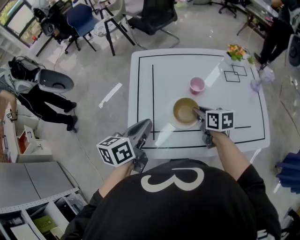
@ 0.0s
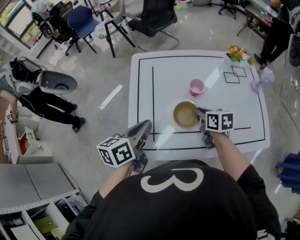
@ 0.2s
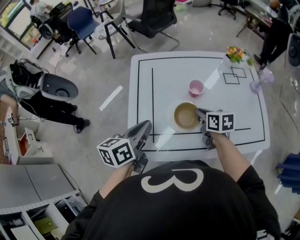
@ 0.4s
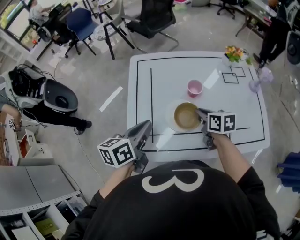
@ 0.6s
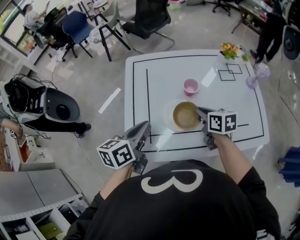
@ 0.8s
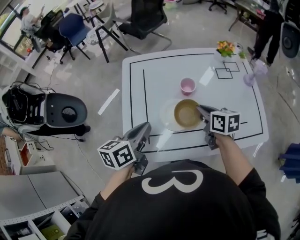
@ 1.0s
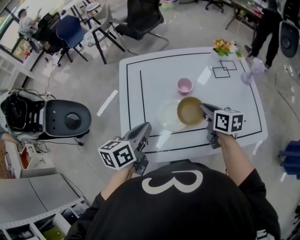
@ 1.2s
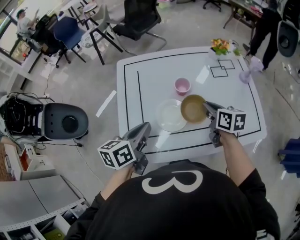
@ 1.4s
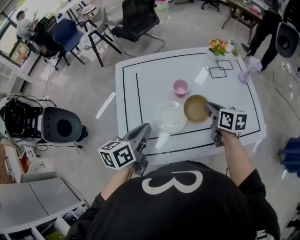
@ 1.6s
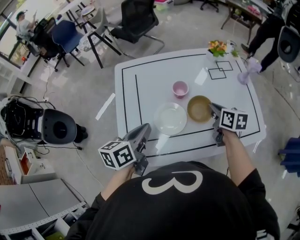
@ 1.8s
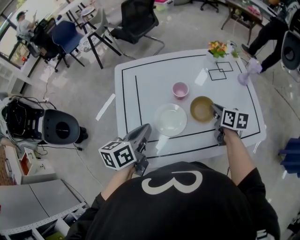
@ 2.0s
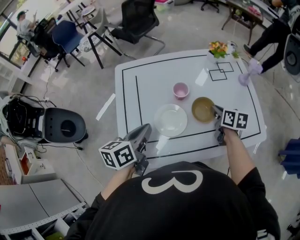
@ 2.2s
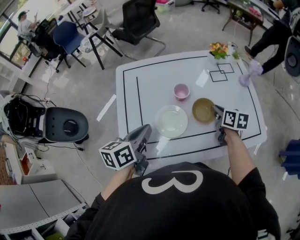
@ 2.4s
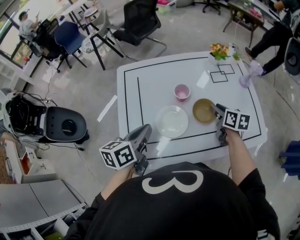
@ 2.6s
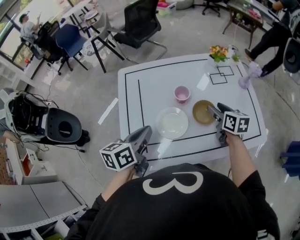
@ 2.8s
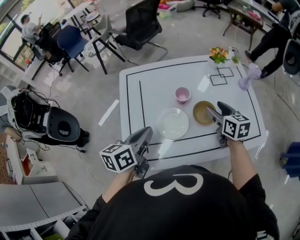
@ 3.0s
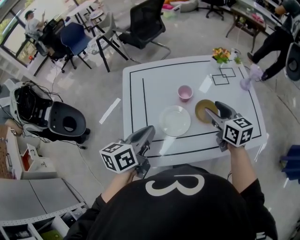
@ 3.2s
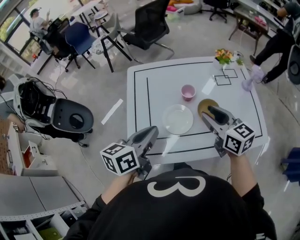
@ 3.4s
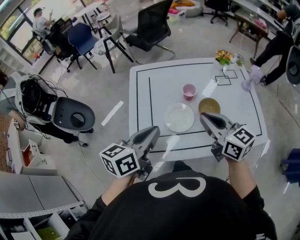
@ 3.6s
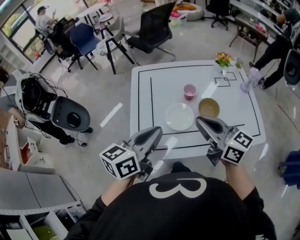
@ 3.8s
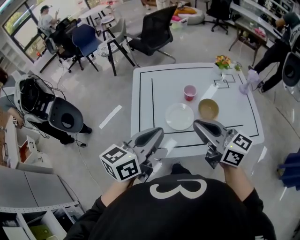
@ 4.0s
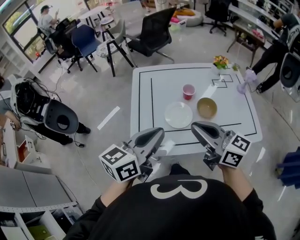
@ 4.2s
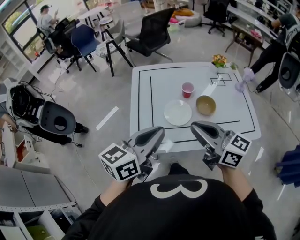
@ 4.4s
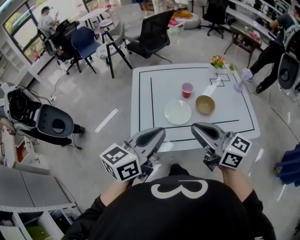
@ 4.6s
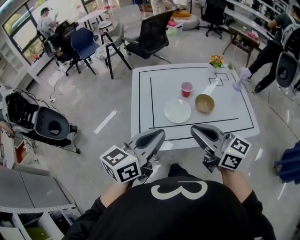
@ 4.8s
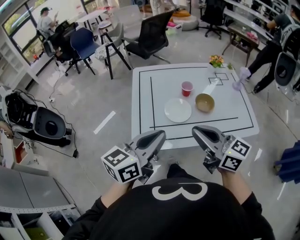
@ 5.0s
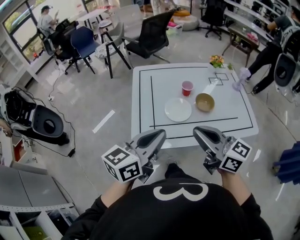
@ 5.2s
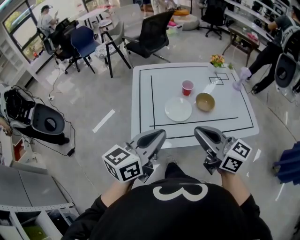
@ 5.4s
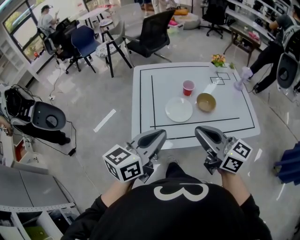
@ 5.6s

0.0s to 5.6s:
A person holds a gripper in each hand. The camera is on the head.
0.0s to 1.4s: The right gripper heads to the right, covering roughly 10 cm.
1.4s to 2.8s: The right gripper heads to the right, covering some 5 cm, and opens its fingers.
2.8s to 4.2s: The right gripper travels backward, upward and to the left by roughly 35 cm, tilts its fingers about 30 degrees upward, and closes its fingers. Meanwhile the left gripper moves backward and upward, some 20 cm, and changes its angle by some 20 degrees.
4.2s to 5.6s: The right gripper is displaced backward by approximately 5 cm.

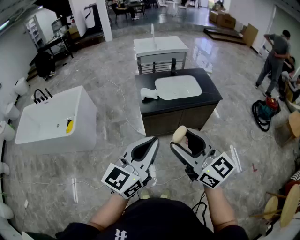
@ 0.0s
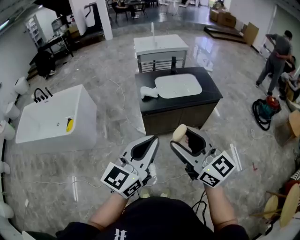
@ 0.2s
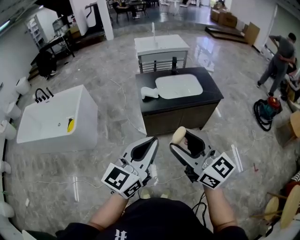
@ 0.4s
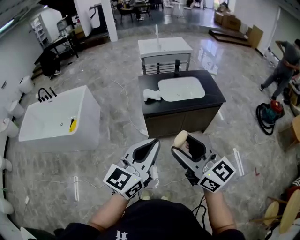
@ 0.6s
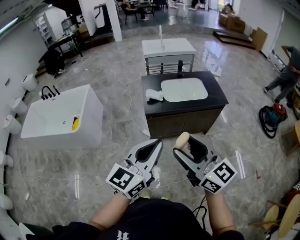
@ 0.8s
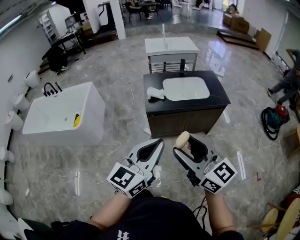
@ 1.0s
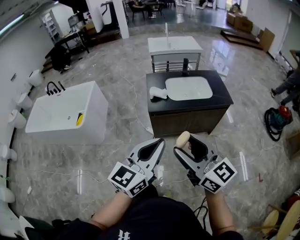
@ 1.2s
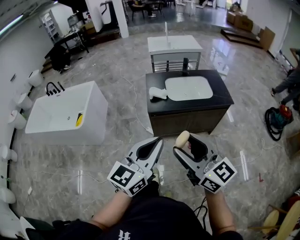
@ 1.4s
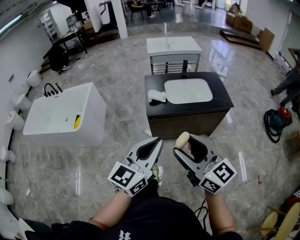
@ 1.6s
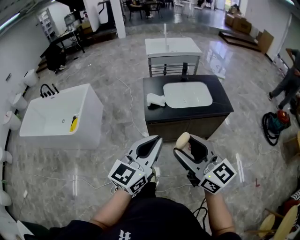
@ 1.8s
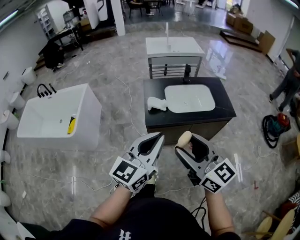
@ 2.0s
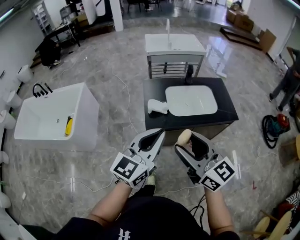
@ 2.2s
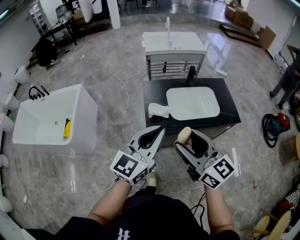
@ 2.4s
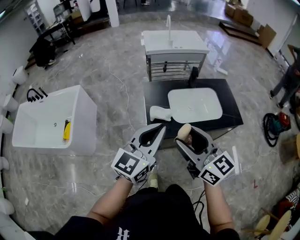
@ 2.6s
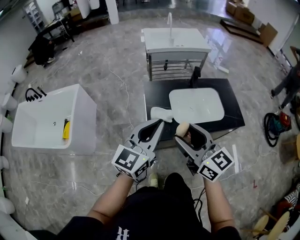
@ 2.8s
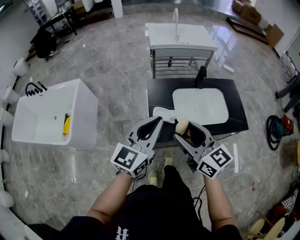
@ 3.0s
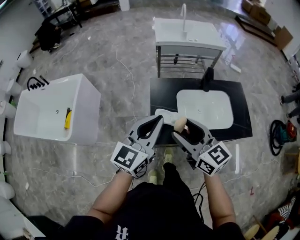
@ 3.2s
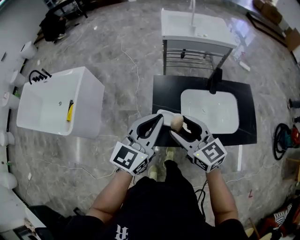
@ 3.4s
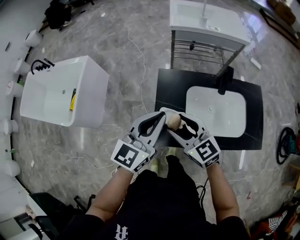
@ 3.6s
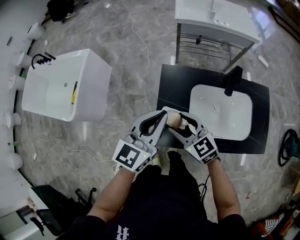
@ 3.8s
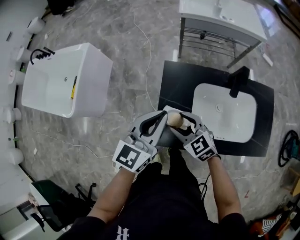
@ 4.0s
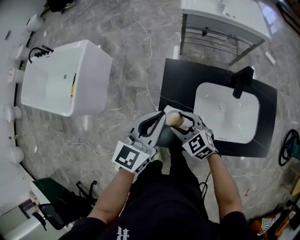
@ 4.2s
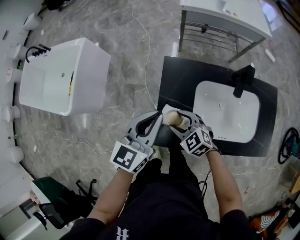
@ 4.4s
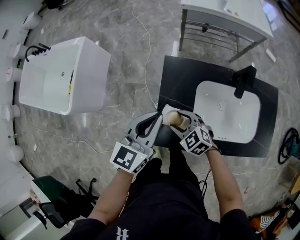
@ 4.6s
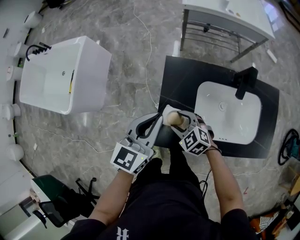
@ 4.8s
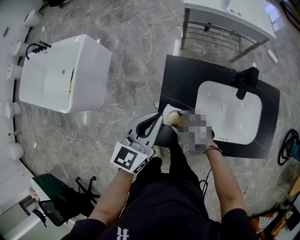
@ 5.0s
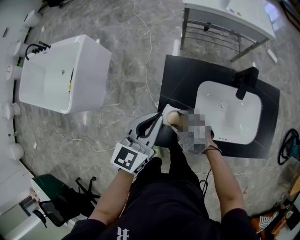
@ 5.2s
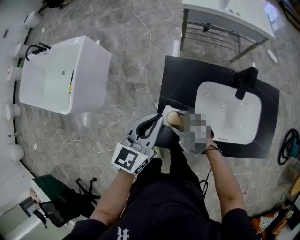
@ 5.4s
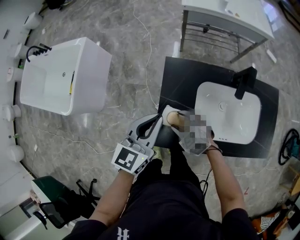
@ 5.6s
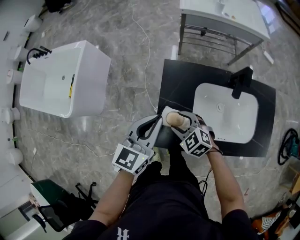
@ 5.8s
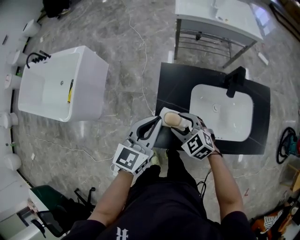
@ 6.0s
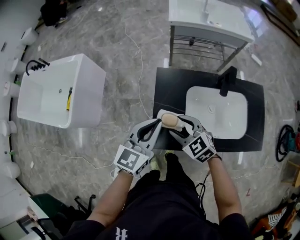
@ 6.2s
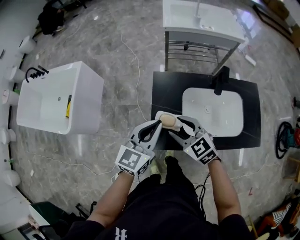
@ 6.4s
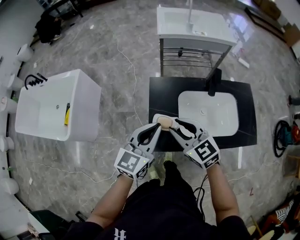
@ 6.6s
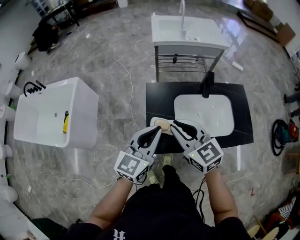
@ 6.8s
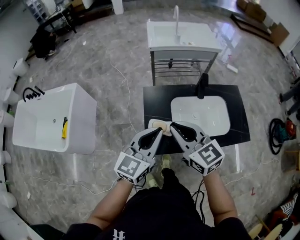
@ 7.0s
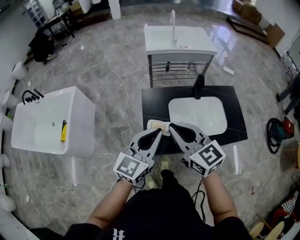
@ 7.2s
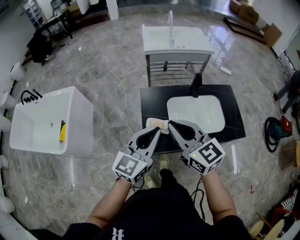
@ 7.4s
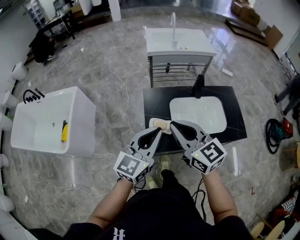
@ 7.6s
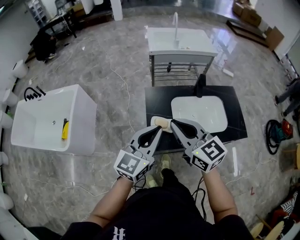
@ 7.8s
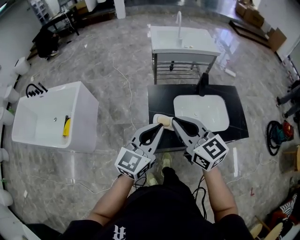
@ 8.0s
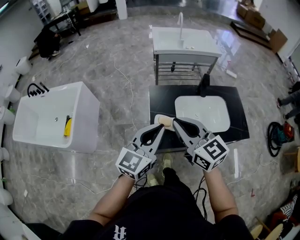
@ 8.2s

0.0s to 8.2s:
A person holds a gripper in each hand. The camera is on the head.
0.0s to 1.6s: The left gripper moves forward, about 5 cm. Meanwhile the right gripper moves approximately 5 cm.
1.6s to 3.2s: The pair of grippers is taken forward, approximately 40 cm.
3.2s to 5.0s: The left gripper travels downward and forward by roughly 20 cm, and changes its angle by about 20 degrees. The right gripper travels downward by some 30 cm, and tips its fingers downward by roughly 40 degrees.
5.0s to 6.6s: The left gripper moves backward and upward, roughly 10 cm; the right gripper is displaced upward by some 25 cm, rotates about 30 degrees, and closes.
6.6s to 8.2s: Both grippers move upward and backward, roughly 15 cm. The right gripper closes its fingers.

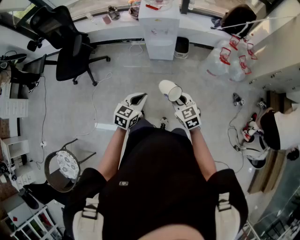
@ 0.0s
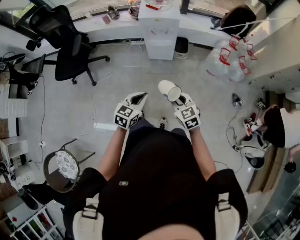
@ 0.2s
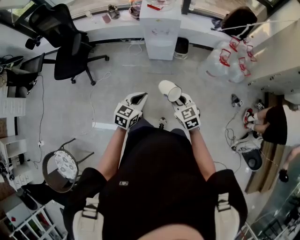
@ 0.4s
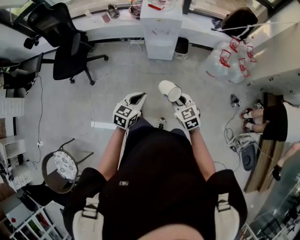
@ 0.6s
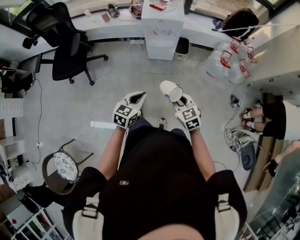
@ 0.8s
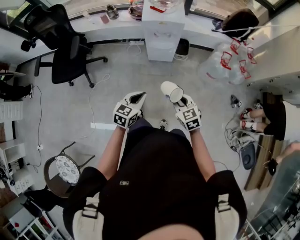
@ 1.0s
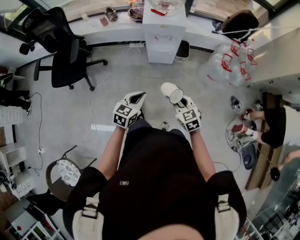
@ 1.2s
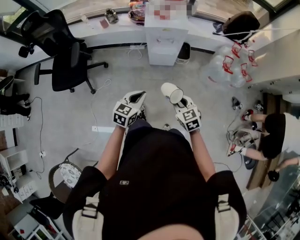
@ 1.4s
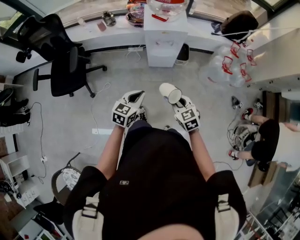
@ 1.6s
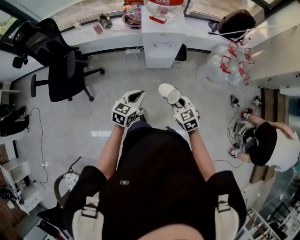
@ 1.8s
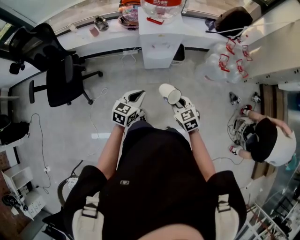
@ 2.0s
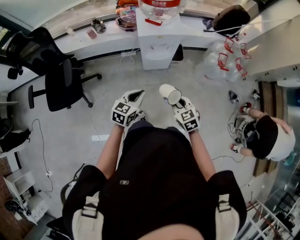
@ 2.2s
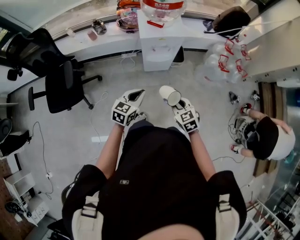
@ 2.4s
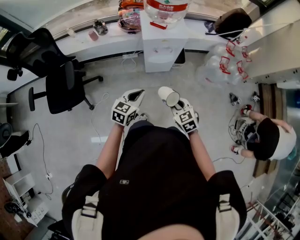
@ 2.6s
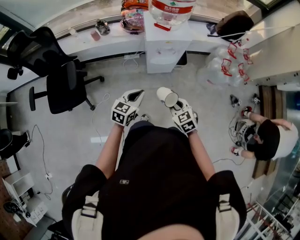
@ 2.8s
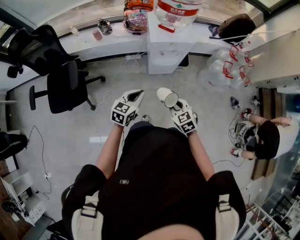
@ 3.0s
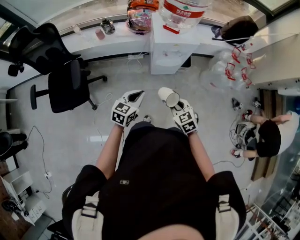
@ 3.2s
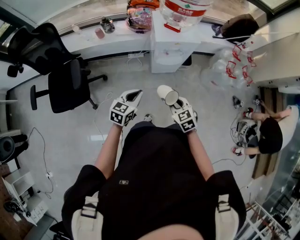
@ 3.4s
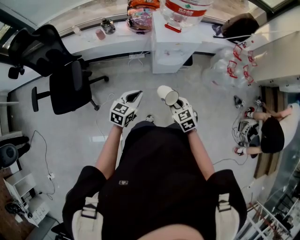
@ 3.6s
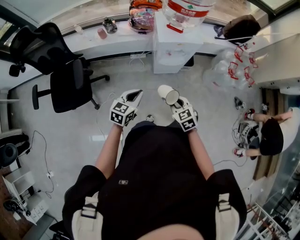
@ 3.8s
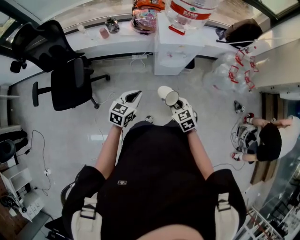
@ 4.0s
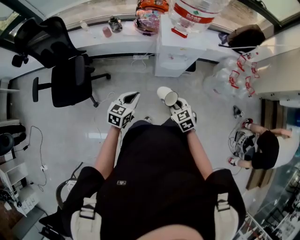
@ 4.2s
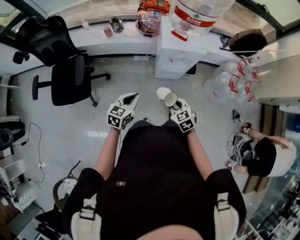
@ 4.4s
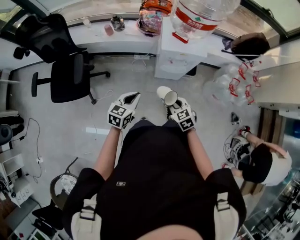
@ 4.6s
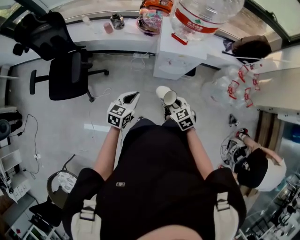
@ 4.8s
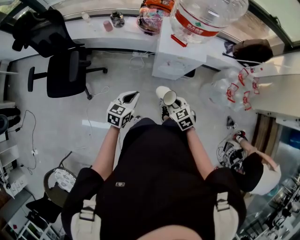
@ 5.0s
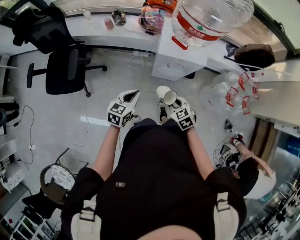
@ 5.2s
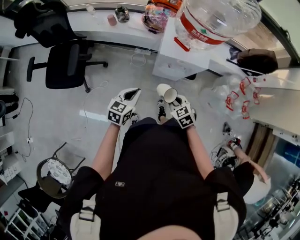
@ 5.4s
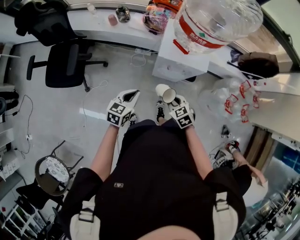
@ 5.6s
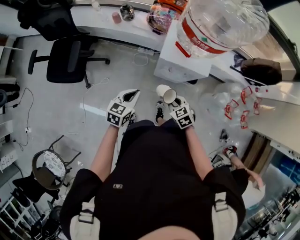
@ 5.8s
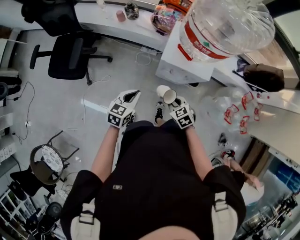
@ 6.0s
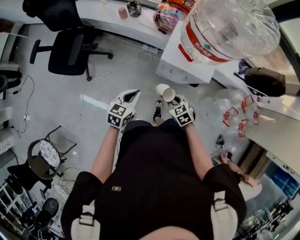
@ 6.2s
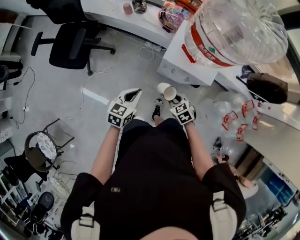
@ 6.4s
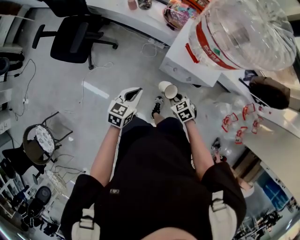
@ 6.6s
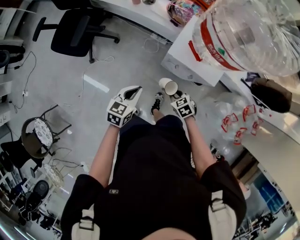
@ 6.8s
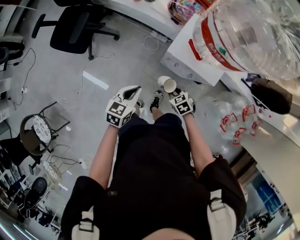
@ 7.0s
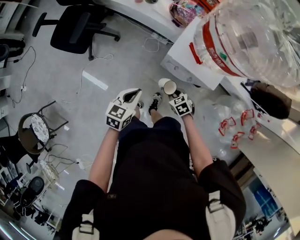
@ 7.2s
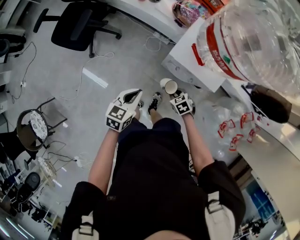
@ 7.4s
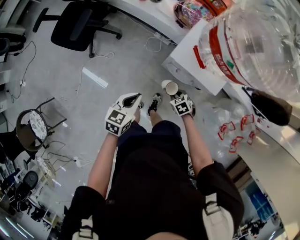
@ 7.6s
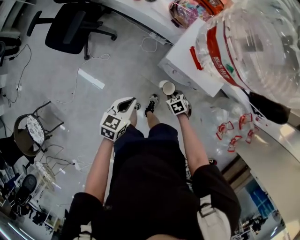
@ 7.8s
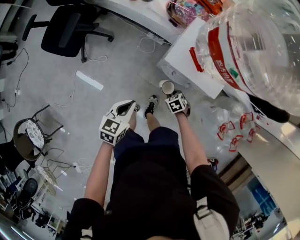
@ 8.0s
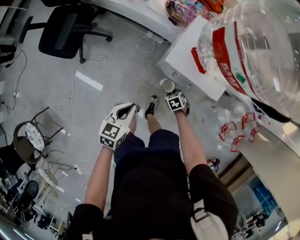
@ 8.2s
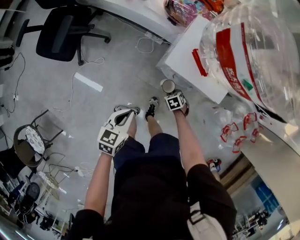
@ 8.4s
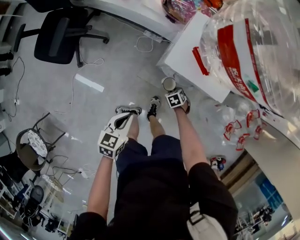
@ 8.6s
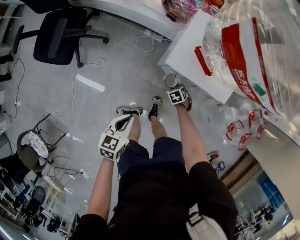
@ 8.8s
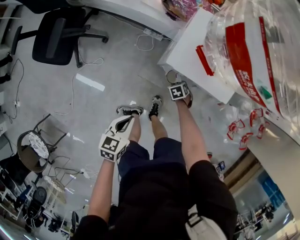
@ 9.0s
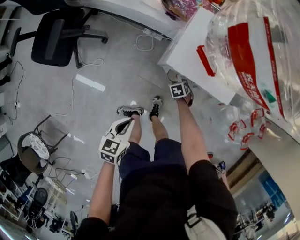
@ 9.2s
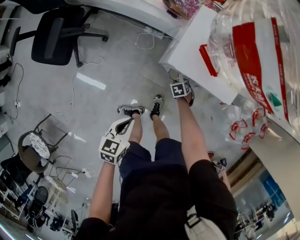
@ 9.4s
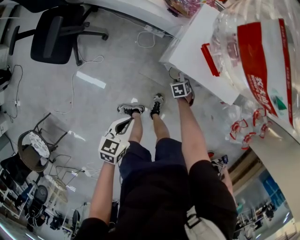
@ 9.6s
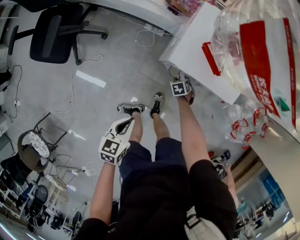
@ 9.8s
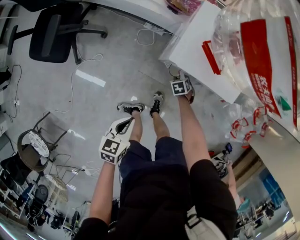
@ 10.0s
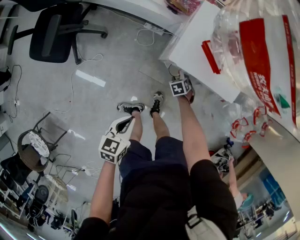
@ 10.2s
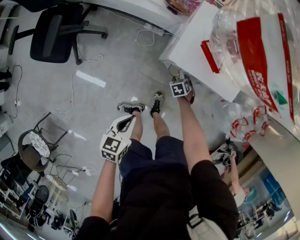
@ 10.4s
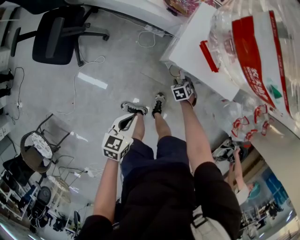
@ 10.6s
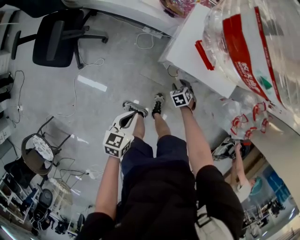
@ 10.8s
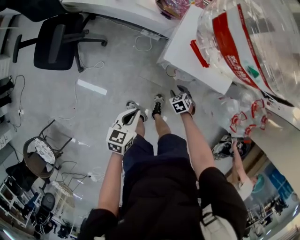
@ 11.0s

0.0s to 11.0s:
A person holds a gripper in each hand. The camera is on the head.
0.0s to 1.6s: Both grippers move forward and to the left, about 20 cm.
1.6s to 3.2s: Both grippers move to the left and forward, about 15 cm.
3.2s to 4.8s: The right gripper is displaced forward by approximately 10 cm.
4.8s to 6.2s: The left gripper shifts about 10 cm to the right and forward; the right gripper shifts roughly 15 cm forward, to the right and downward.
6.2s to 7.8s: The right gripper heads downward, covering approximately 15 cm. Meanwhile the left gripper ends up approximately 5 cm from where it was.
7.8s to 9.4s: The right gripper moves downward, approximately 15 cm, and swivels approximately 20 degrees, while the left gripper travels downward by roughly 10 cm.
9.4s to 11.0s: The right gripper shifts by about 10 cm, and opens its fingers.
